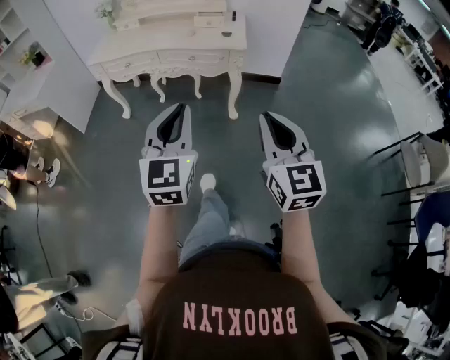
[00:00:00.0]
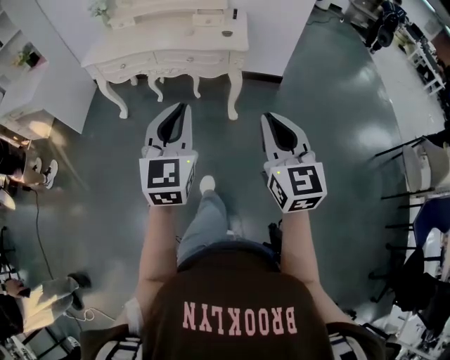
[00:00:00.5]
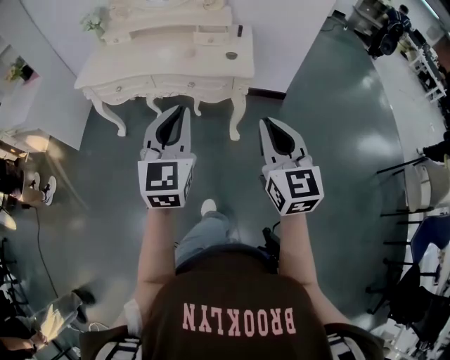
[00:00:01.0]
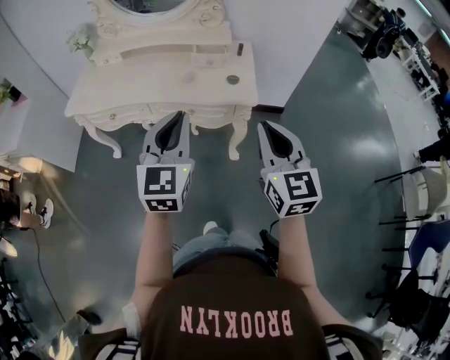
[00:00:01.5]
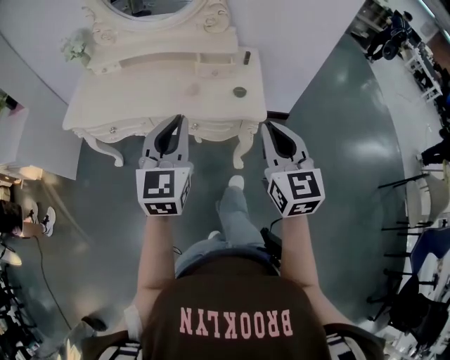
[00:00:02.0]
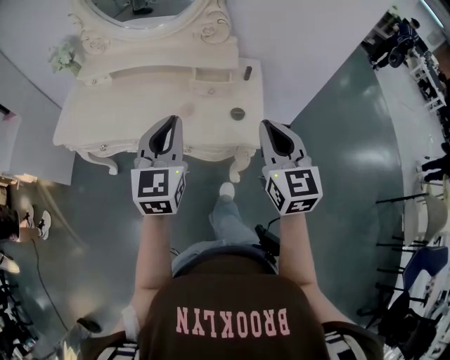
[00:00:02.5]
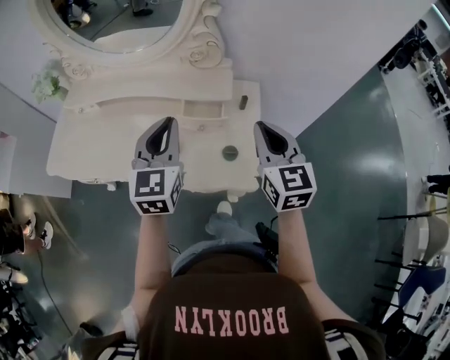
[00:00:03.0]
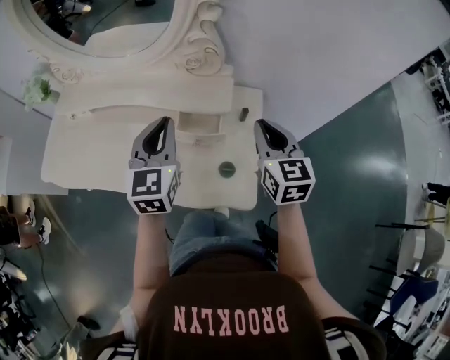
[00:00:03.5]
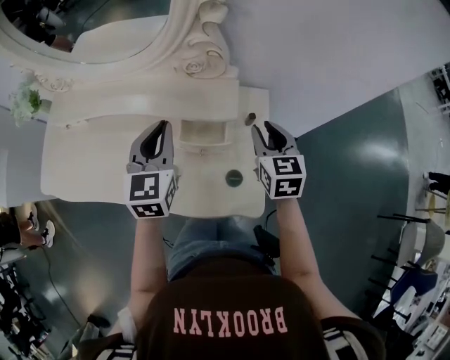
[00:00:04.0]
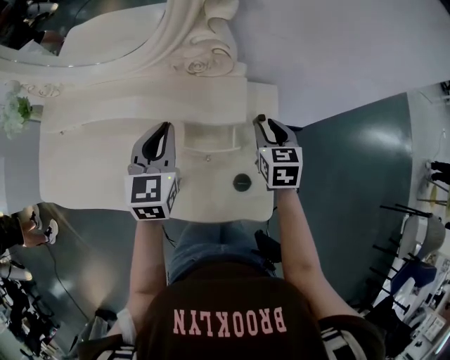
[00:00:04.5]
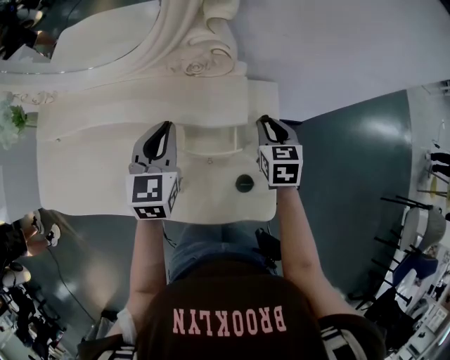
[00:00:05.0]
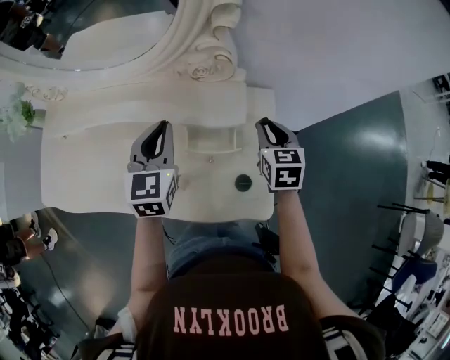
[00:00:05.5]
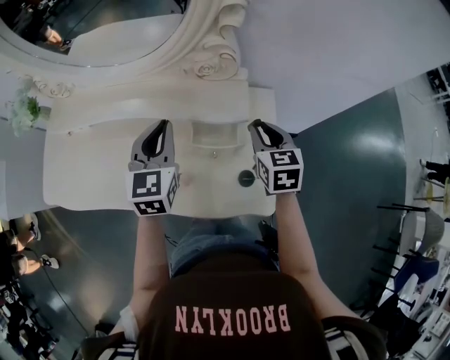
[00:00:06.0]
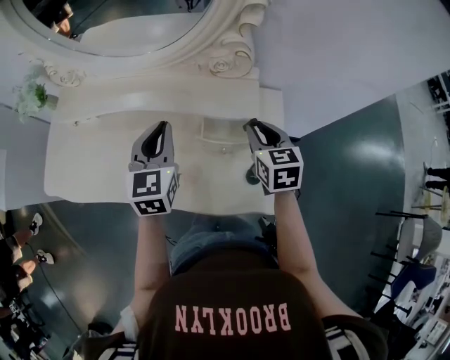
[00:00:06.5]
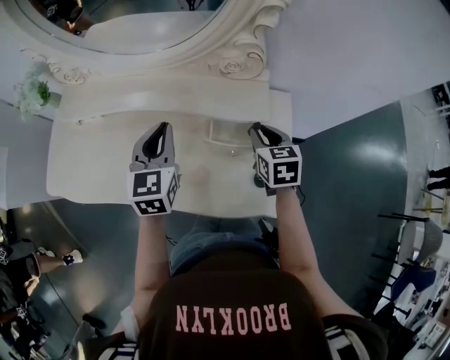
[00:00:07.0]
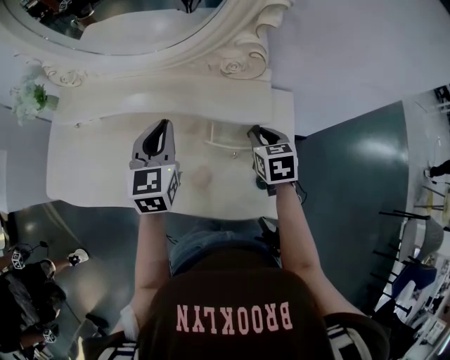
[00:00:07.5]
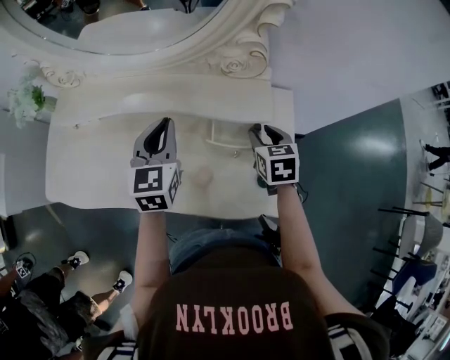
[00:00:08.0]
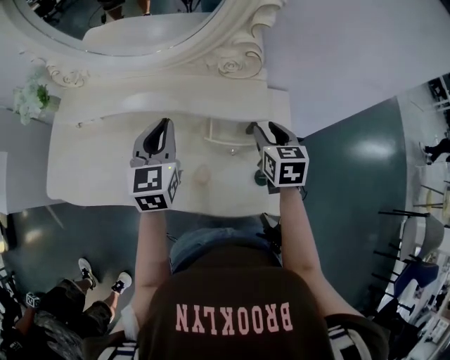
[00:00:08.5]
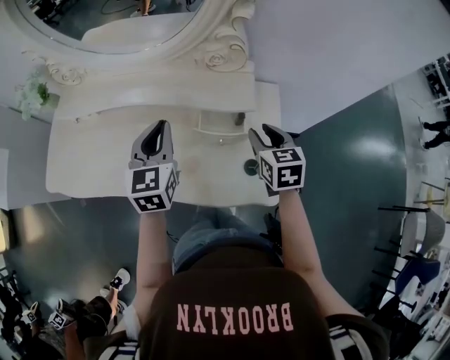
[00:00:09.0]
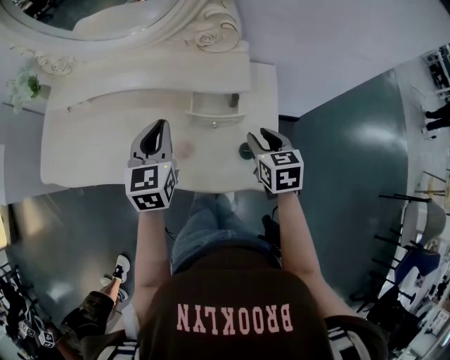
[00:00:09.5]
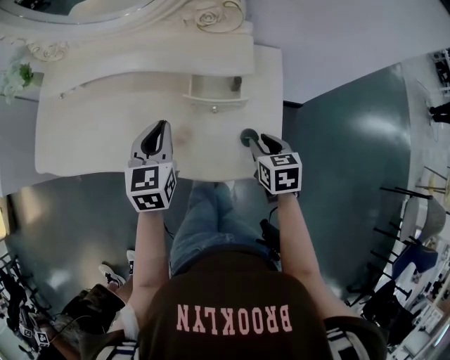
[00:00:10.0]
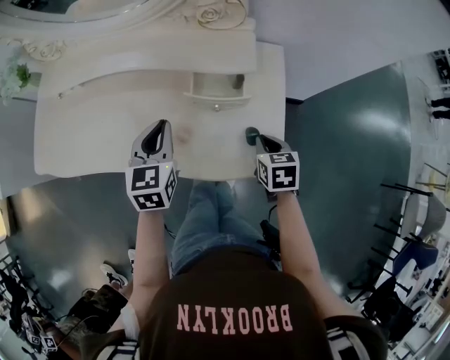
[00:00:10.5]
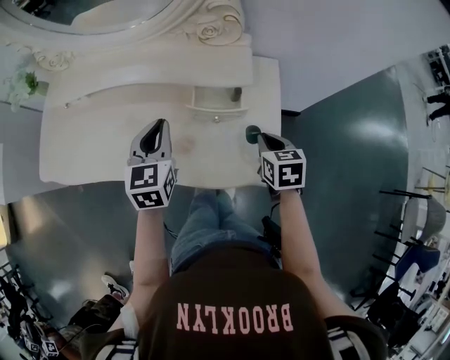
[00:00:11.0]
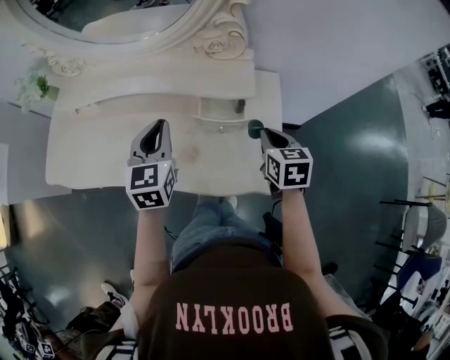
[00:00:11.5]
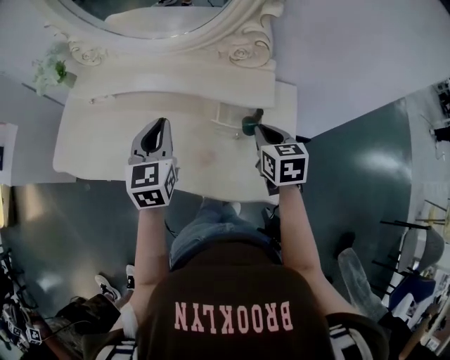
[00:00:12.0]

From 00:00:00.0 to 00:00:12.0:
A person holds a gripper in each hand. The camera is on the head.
From 00:00:00.0 to 00:00:02.0: The two grippers travel together, forward, approximately 50 cm.
From 00:00:02.0 to 00:00:04.0: Both grippers are carried forward, about 40 cm. The right gripper turns by roughly 20 degrees, and opens up.
From 00:00:04.0 to 00:00:06.0: The right gripper moves about 10 cm downward and comes back.
From 00:00:06.0 to 00:00:08.0: The right gripper goes approximately 5 cm downward. Meanwhile the left gripper is displaced to the left by approximately 5 cm.
From 00:00:08.0 to 00:00:10.0: The right gripper travels backward by about 15 cm; the left gripper moves backward and downward, some 15 cm.
From 00:00:10.0 to 00:00:12.0: The left gripper moves upward and to the left, roughly 10 cm. The right gripper travels forward, upward and to the left by roughly 15 cm, and closes up.

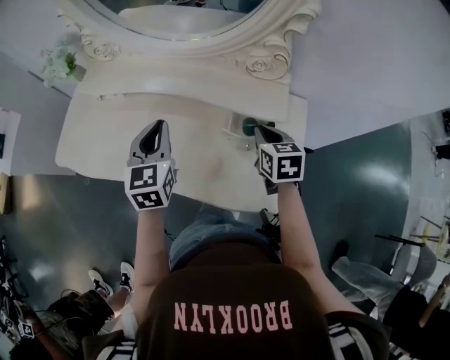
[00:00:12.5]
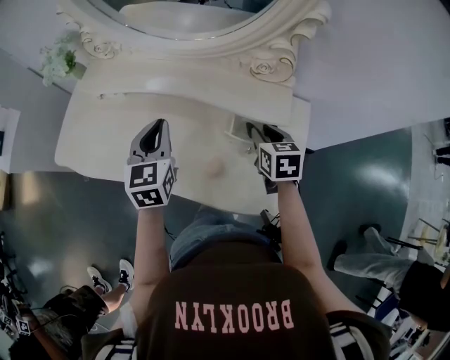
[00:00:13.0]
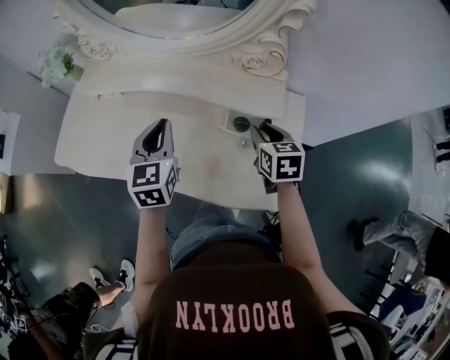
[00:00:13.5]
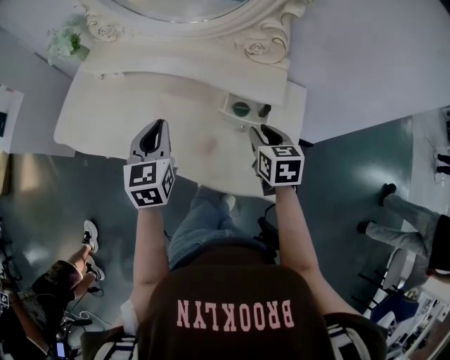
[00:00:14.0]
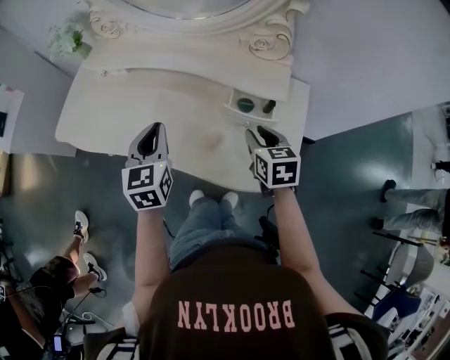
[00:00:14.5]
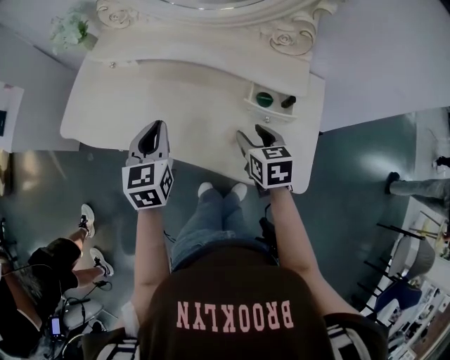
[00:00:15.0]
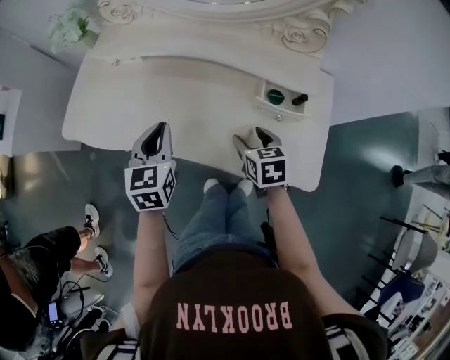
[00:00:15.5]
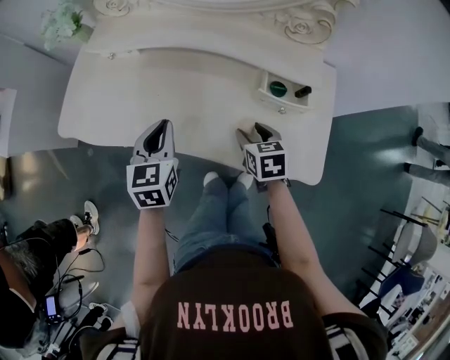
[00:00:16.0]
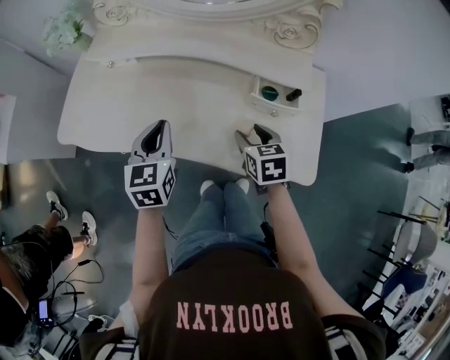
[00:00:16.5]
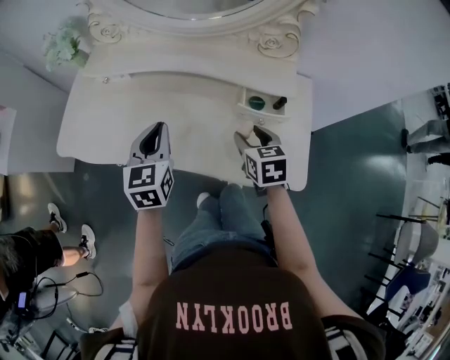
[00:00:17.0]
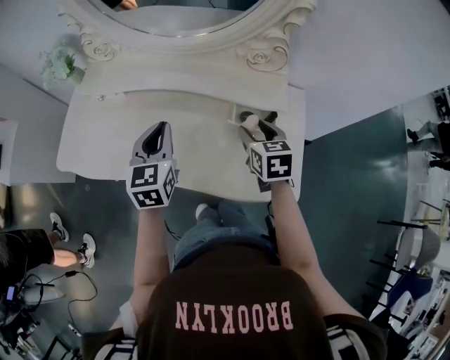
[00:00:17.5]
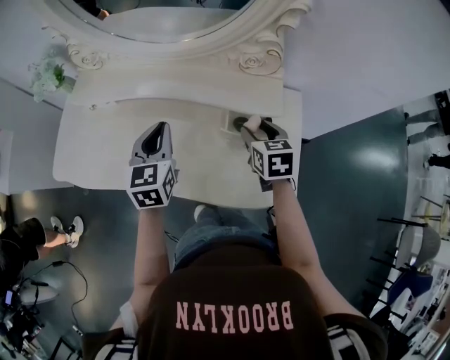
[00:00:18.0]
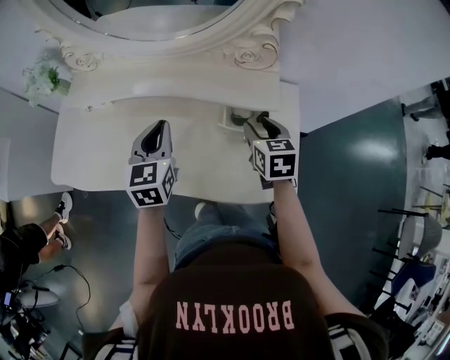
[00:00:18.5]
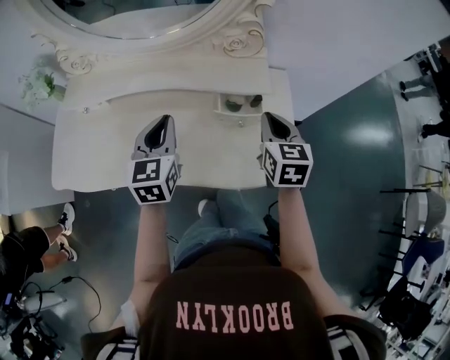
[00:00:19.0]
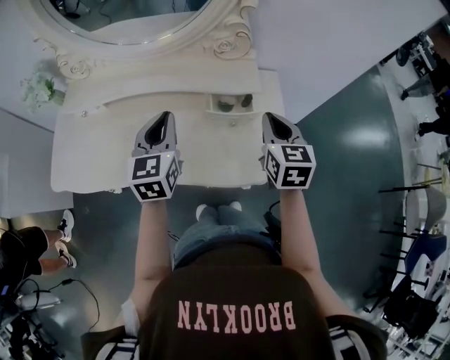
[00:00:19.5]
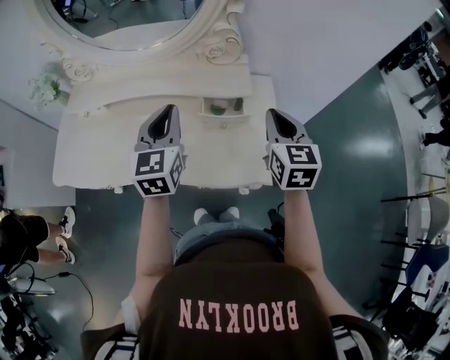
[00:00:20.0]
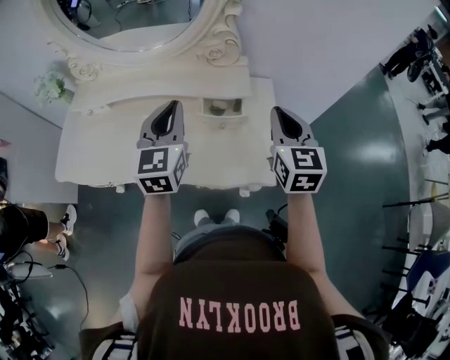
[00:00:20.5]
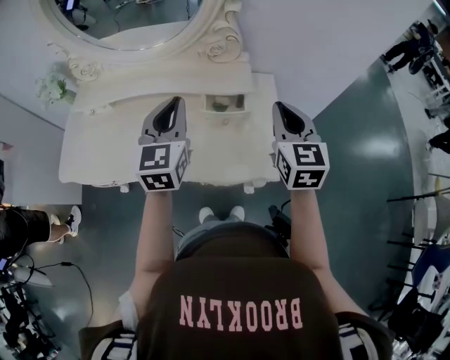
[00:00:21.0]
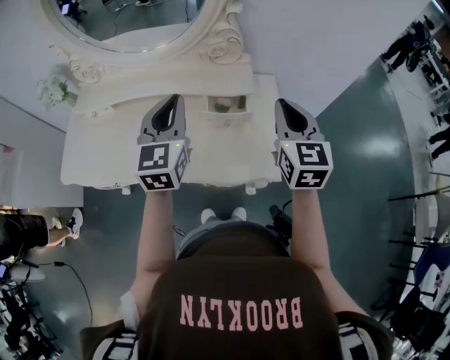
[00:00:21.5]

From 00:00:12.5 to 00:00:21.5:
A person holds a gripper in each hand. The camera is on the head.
From 00:00:12.5 to 00:00:14.5: Both grippers move backward, approximately 5 cm. The right gripper opens.
From 00:00:14.5 to 00:00:17.0: The right gripper goes roughly 5 cm to the left, and opens its fingers.
From 00:00:17.0 to 00:00:19.5: Both grippers travel together to the right and upward, some 15 cm. The right gripper changes its angle by roughly 30 degrees, and closes up.
From 00:00:19.5 to 00:00:21.5: The right gripper heads upward, covering about 10 cm, while the left gripper goes some 10 cm upward and to the right.

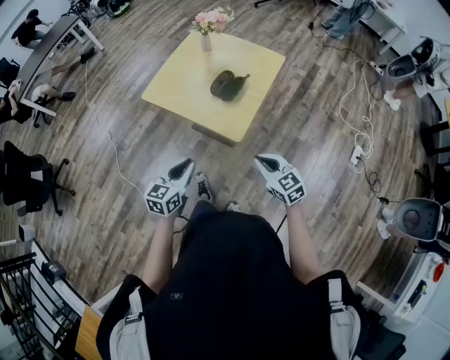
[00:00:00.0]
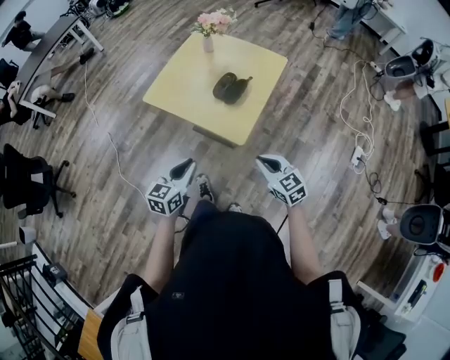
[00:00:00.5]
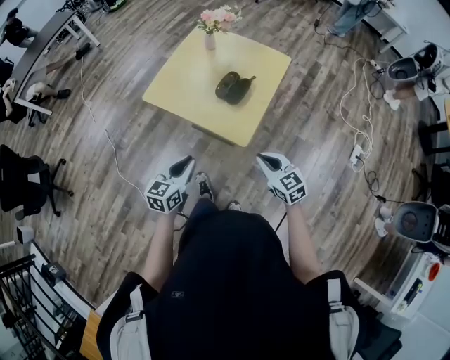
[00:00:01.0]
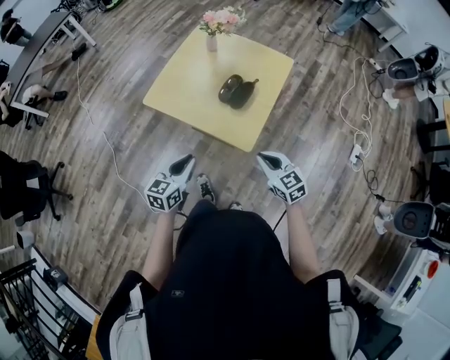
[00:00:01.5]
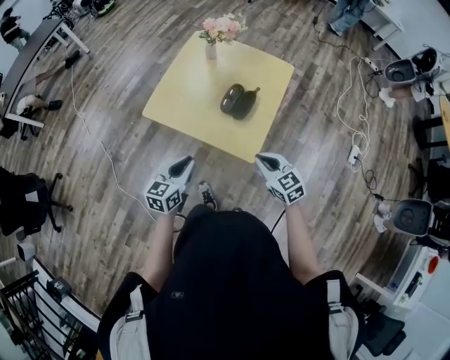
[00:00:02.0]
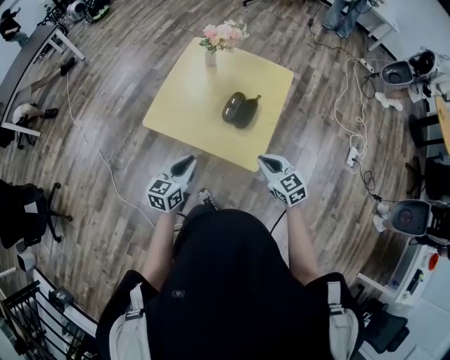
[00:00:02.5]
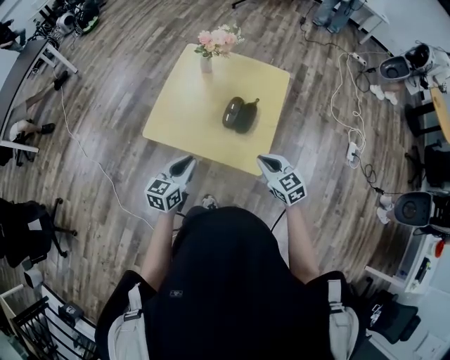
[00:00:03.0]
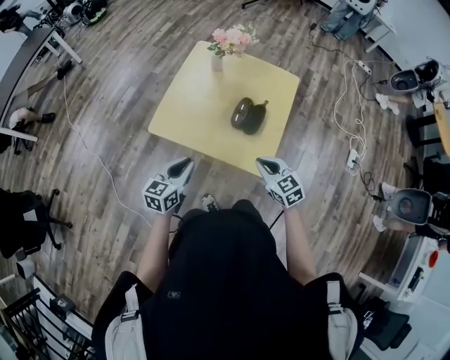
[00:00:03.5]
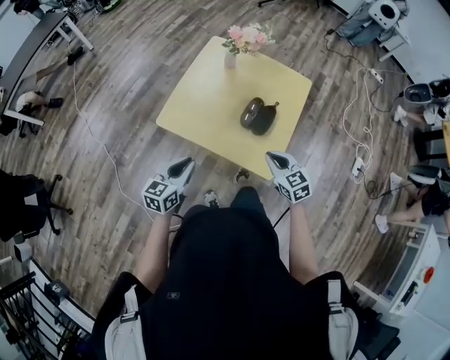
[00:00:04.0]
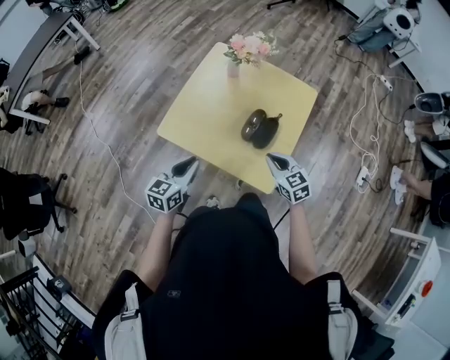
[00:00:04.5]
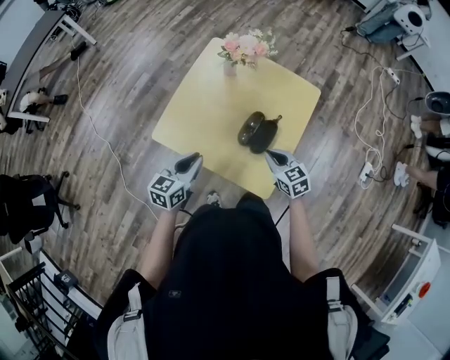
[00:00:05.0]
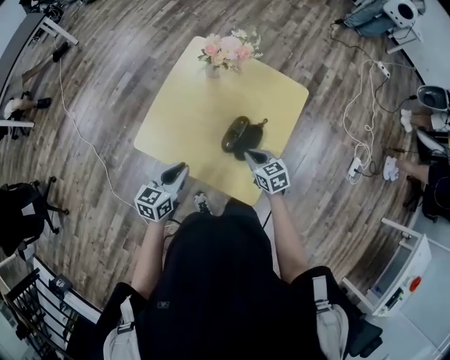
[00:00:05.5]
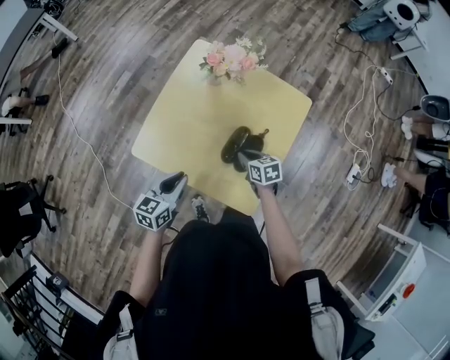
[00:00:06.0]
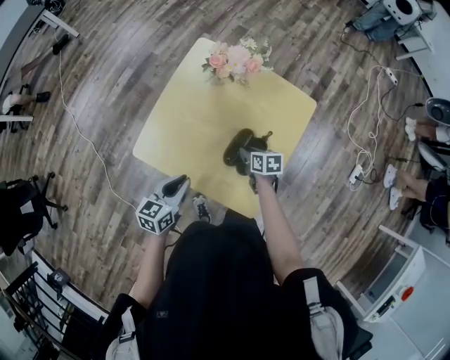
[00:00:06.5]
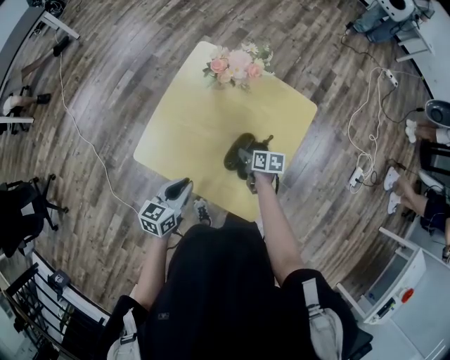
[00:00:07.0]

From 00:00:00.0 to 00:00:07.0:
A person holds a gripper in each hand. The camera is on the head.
From 00:00:00.0 to 00:00:02.0: Both grippers travel together forward and to the left, about 15 cm.
From 00:00:02.0 to 00:00:03.5: The left gripper heads forward and to the left, covering about 10 cm. The right gripper goes some 10 cm to the left and forward.
From 00:00:03.5 to 00:00:05.0: The grippers both shift forward by about 15 cm.
From 00:00:05.0 to 00:00:07.0: The left gripper is displaced downward by roughly 5 cm. Meanwhile the right gripper moves downward and forward, about 20 cm, twists some 50 degrees clockwise, seen from behind, and opens up.
